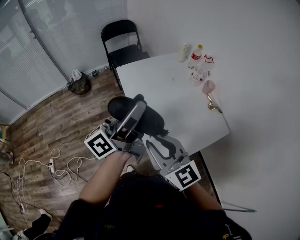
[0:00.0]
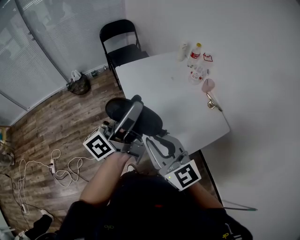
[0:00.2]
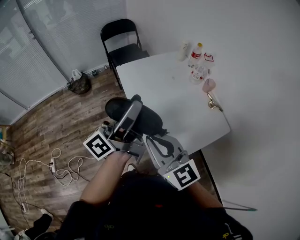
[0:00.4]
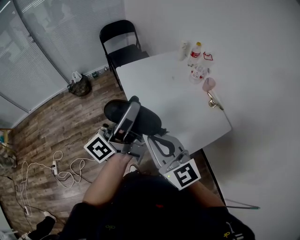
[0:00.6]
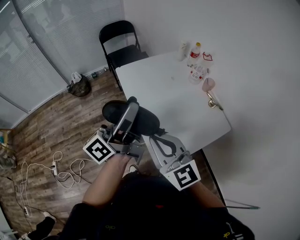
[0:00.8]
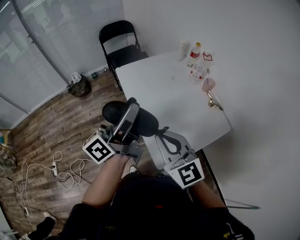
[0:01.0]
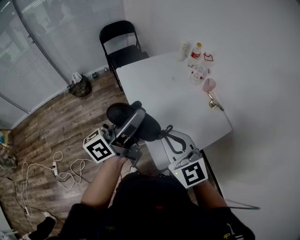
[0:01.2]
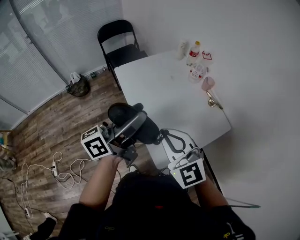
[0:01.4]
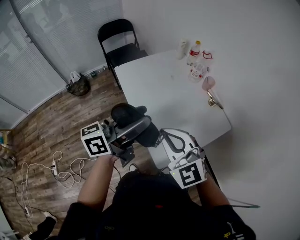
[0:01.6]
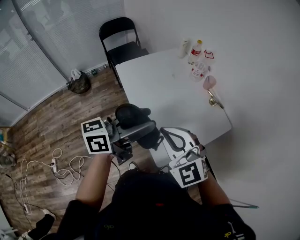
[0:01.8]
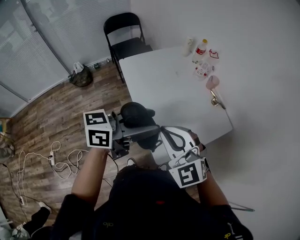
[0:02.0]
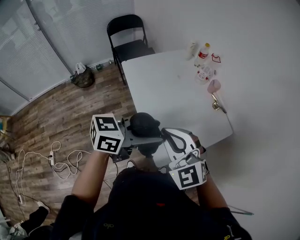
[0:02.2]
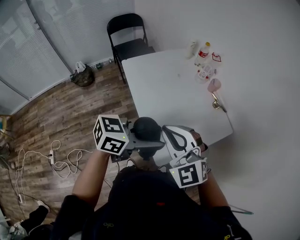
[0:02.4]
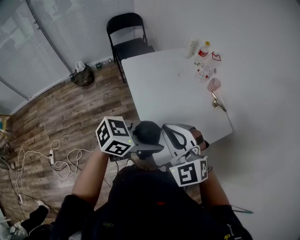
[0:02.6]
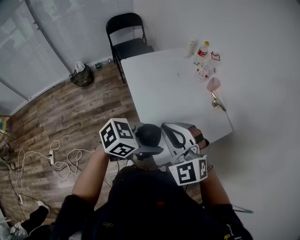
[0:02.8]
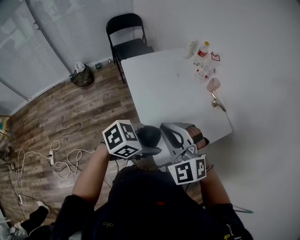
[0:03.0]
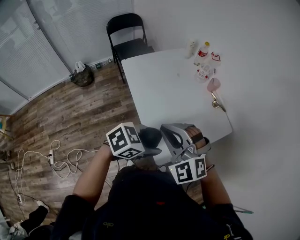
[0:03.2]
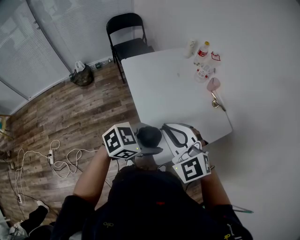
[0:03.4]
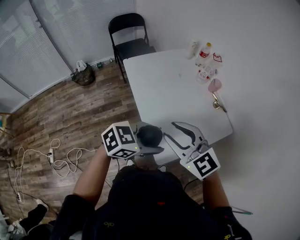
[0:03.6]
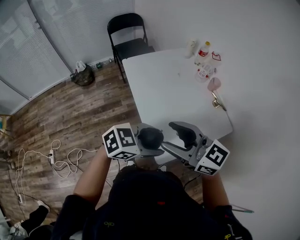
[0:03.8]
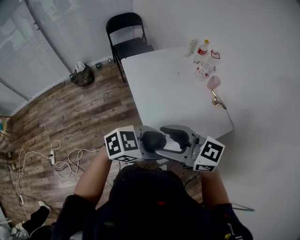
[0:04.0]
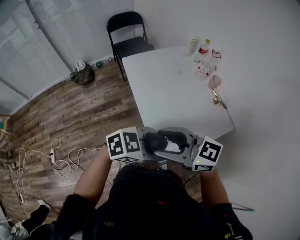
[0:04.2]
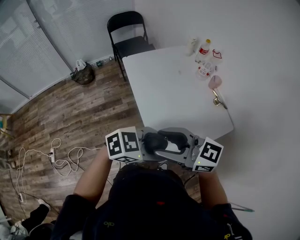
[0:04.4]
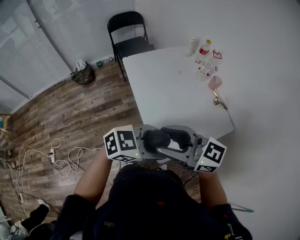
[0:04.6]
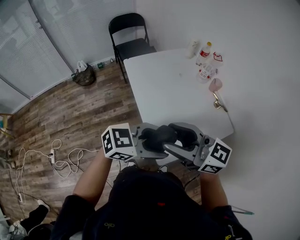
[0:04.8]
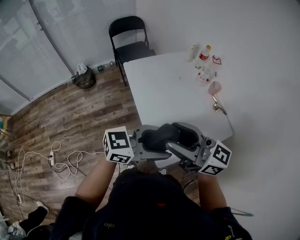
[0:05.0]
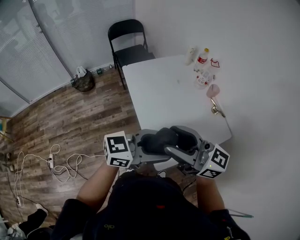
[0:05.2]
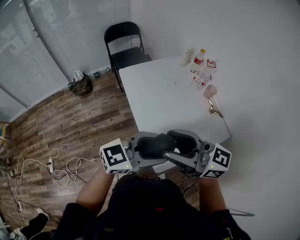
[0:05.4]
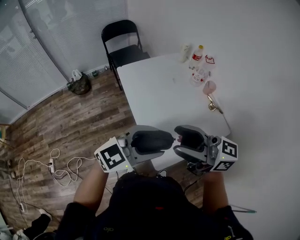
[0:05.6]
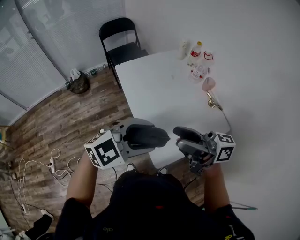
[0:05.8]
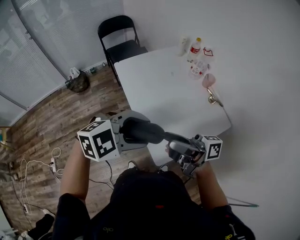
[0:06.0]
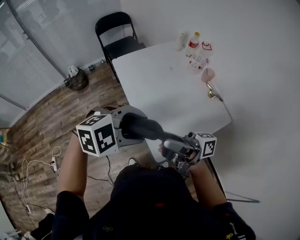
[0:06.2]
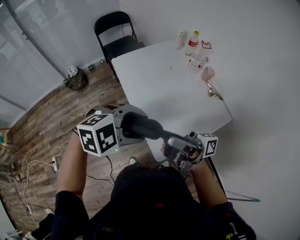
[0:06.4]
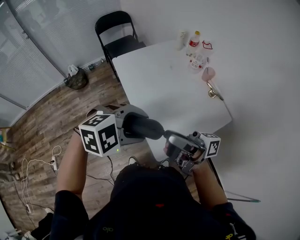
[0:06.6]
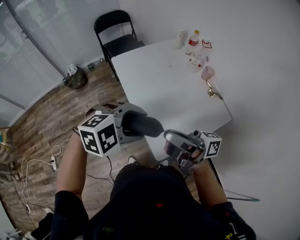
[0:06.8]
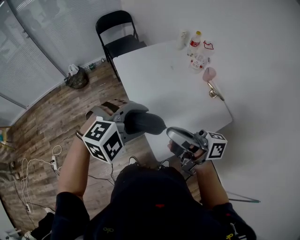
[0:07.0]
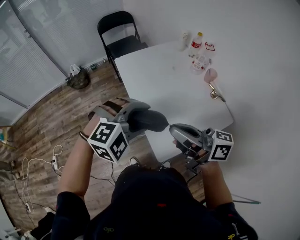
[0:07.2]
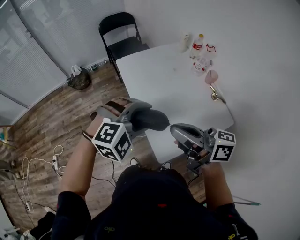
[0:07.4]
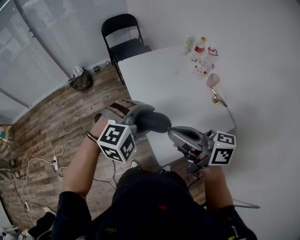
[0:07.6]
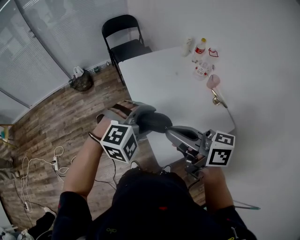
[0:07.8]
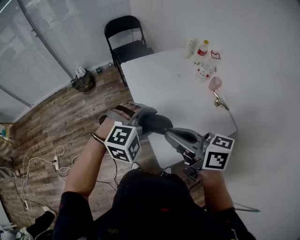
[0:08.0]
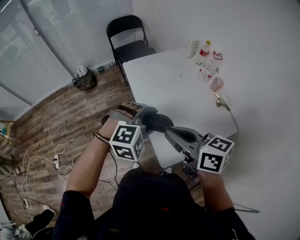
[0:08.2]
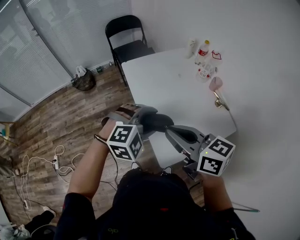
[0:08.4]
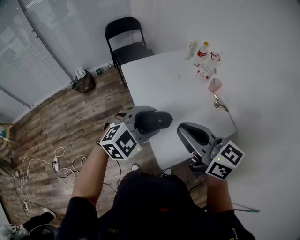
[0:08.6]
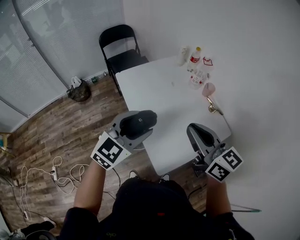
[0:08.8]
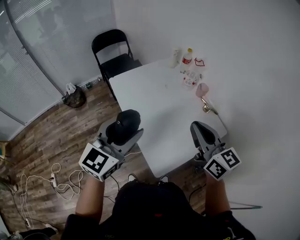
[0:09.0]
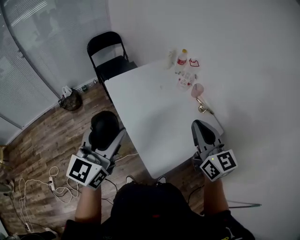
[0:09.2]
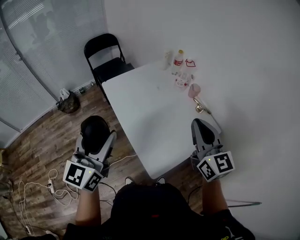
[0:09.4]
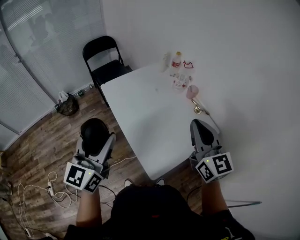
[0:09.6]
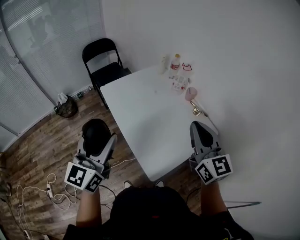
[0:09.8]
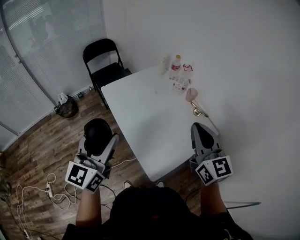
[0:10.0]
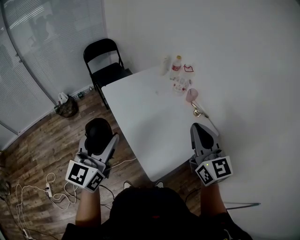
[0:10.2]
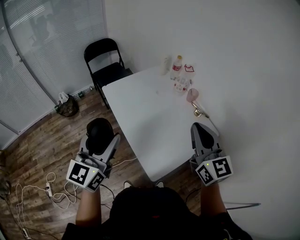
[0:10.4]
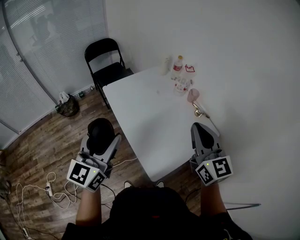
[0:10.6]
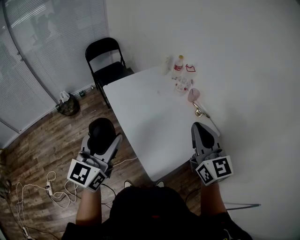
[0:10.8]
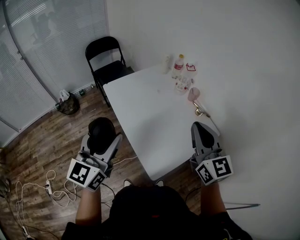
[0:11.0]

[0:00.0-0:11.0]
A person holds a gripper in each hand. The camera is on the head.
0:00.0 to 0:01.6: The right gripper turns by roughly 30 degrees; the left gripper changes place by roughly 5 cm, and swivels roughly 20 degrees.
0:01.6 to 0:03.2: The left gripper heads downward, to the right and backward, covering about 20 cm, and tips its fingers downward by approximately 50 degrees. Meanwhile the right gripper changes its angle by about 30 degrees.
0:03.2 to 0:04.8: The grippers both shift upward by roughly 5 cm. The right gripper rolls clockwise, seen from behind, by about 60 degrees, and opens its fingers; the left gripper swivels roughly 20 degrees.
0:04.8 to 0:06.2: The left gripper moves approximately 5 cm, and swivels some 40 degrees. The right gripper rotates around the line of its fingers by some 50 degrees, clockwise from behind.
0:06.2 to 0:07.8: The right gripper rotates roughly 40 degrees, and closes, while the left gripper ends up approximately 5 cm from where it was, and turns by roughly 30 degrees.
0:07.8 to 0:09.4: The right gripper is displaced to the right by approximately 15 cm, and rotates approximately 60 degrees. The left gripper goes some 15 cm upward and to the left, and points its fingers roughly 50 degrees further upward.
0:09.4 to 0:11.0: The grippers move only a little.

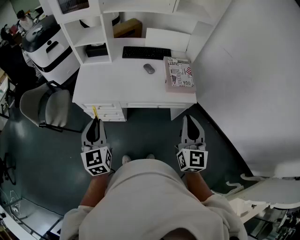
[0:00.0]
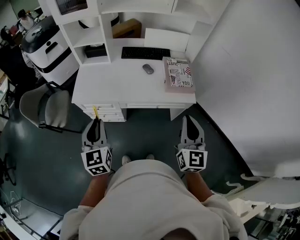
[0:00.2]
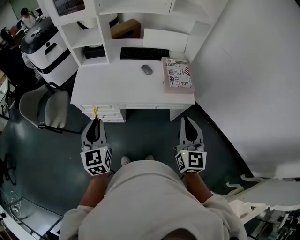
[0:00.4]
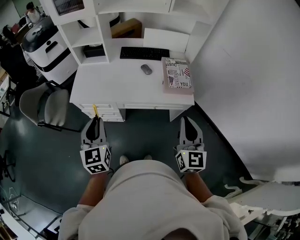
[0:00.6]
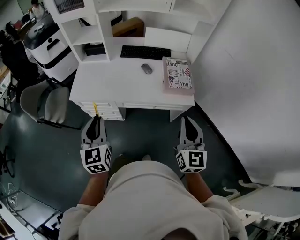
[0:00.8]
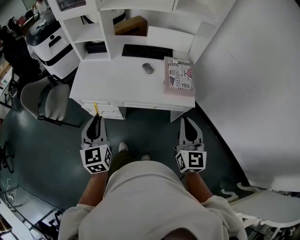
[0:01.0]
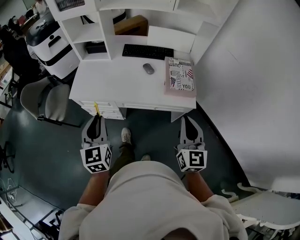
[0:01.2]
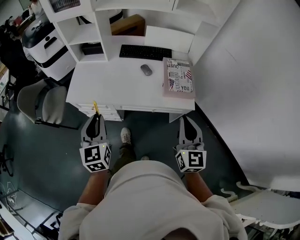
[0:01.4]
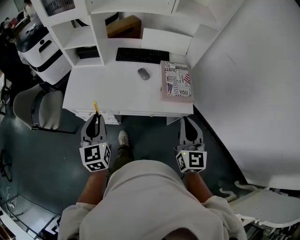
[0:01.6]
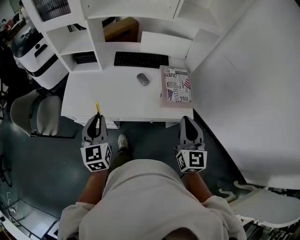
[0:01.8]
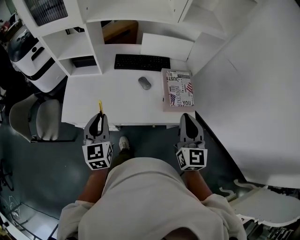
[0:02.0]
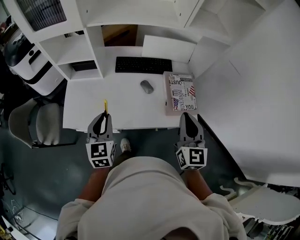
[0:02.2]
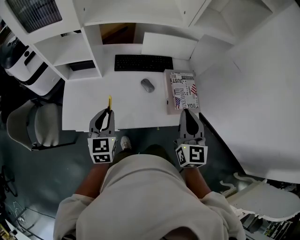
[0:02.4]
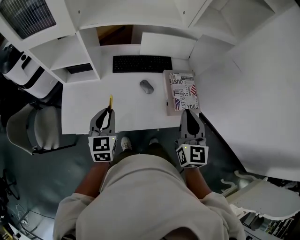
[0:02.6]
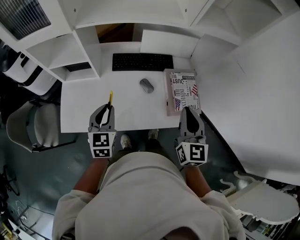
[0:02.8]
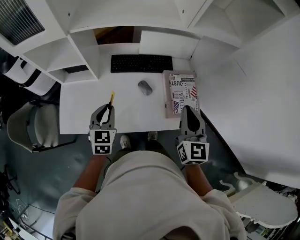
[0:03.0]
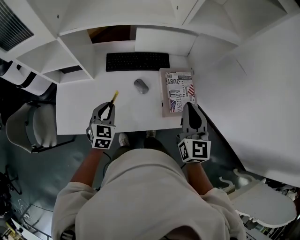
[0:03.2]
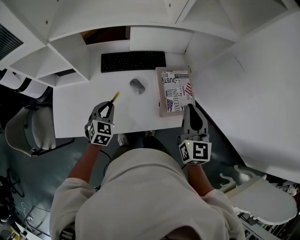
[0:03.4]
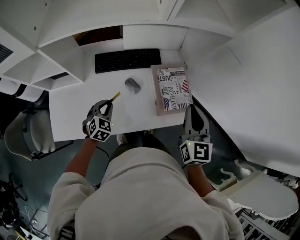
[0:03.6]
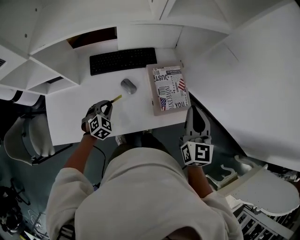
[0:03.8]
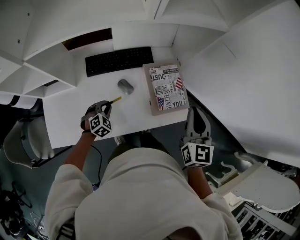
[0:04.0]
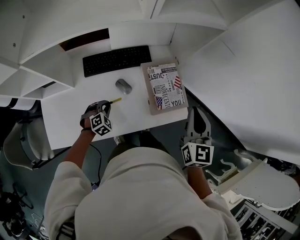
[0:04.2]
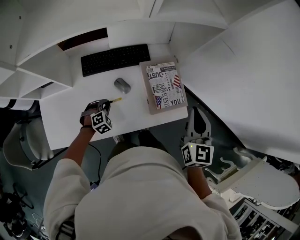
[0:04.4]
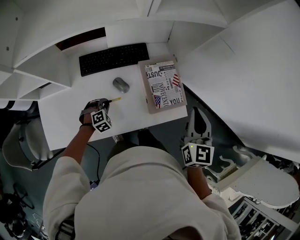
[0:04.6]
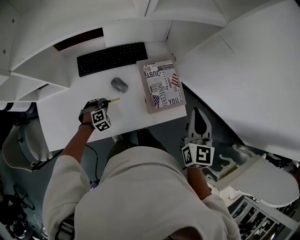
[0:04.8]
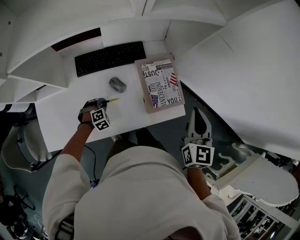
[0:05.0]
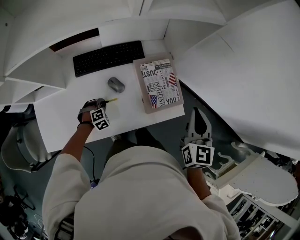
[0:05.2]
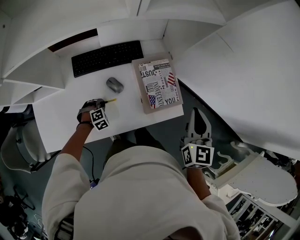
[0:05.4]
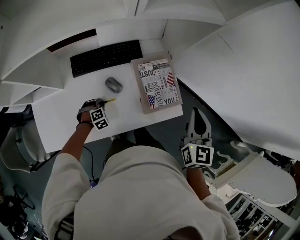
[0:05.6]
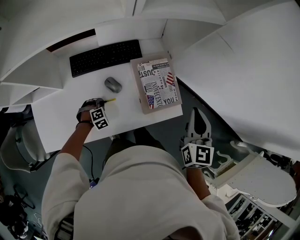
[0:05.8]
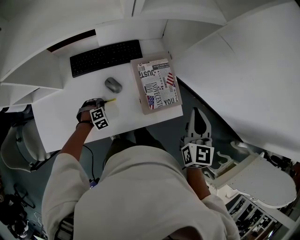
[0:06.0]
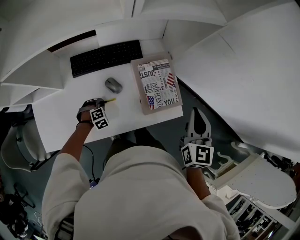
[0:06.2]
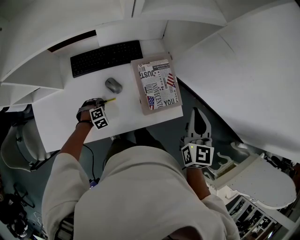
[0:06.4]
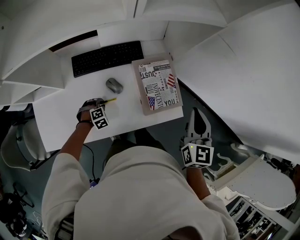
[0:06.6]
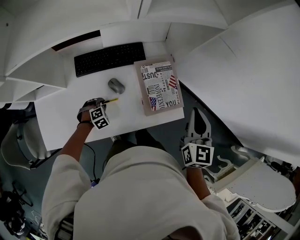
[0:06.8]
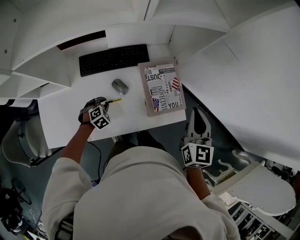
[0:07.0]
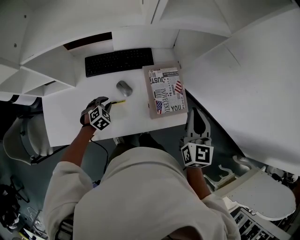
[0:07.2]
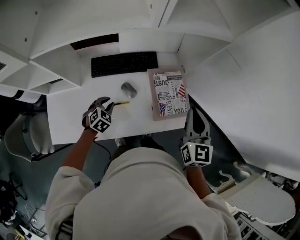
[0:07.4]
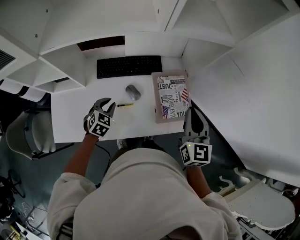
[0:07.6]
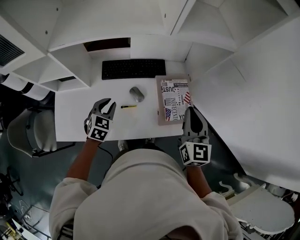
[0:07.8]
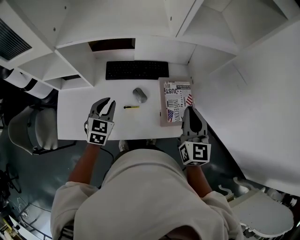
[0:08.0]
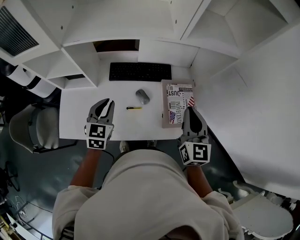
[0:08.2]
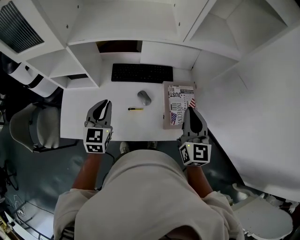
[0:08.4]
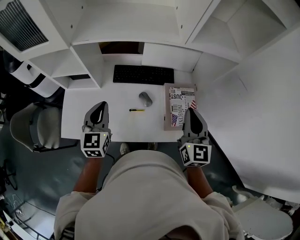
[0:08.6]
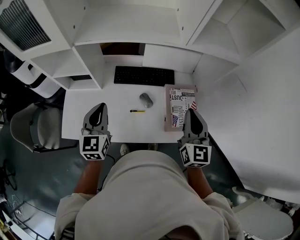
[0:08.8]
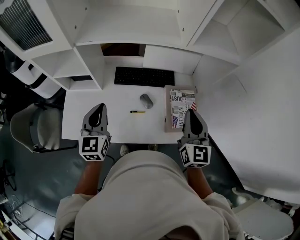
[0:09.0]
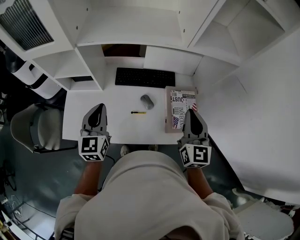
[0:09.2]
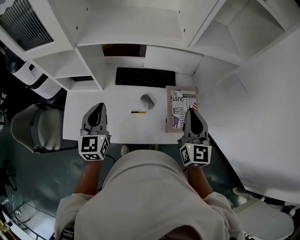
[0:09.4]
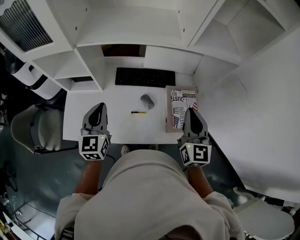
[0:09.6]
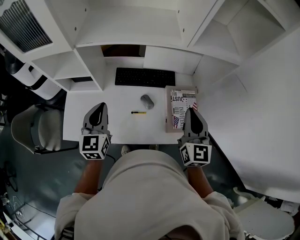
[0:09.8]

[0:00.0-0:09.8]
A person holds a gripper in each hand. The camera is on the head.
0:00.0 to 0:01.4: The right gripper shifts approximately 10 cm forward and to the right; the left gripper shifts approximately 10 cm to the right and forward.
0:01.4 to 0:02.8: The grippers both shift forward by some 25 cm. The left gripper turns by approximately 20 degrees.
0:02.8 to 0:04.2: The left gripper moves downward, forward and to the right, approximately 25 cm, and twists approximately 50 degrees clockwise, seen from behind. The right gripper heads to the right and forward, covering approximately 15 cm.
0:04.2 to 0:05.6: The left gripper moves downward, about 10 cm.
0:05.6 to 0:07.0: The left gripper travels upward by approximately 5 cm.
0:07.0 to 0:08.4: The right gripper travels to the left and upward by about 15 cm. Meanwhile the left gripper moves upward, roughly 30 cm, and angles its fingers upward, by roughly 50 degrees.
0:08.4 to 0:09.8: The left gripper shifts by about 5 cm.

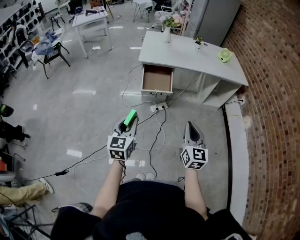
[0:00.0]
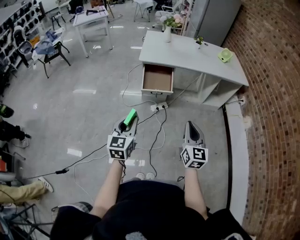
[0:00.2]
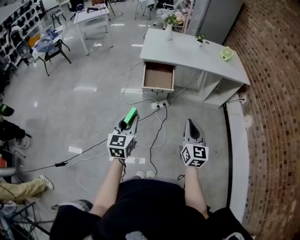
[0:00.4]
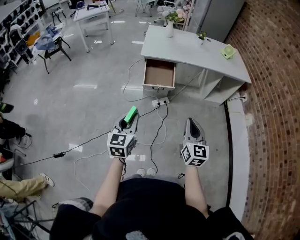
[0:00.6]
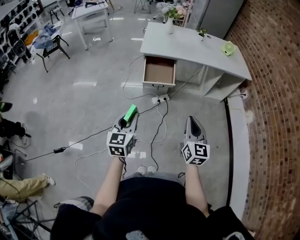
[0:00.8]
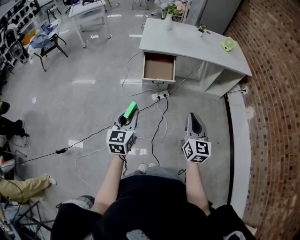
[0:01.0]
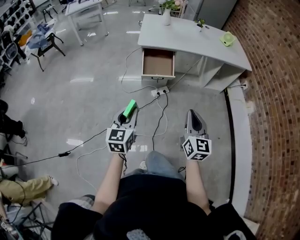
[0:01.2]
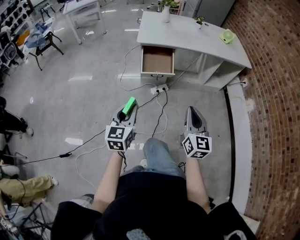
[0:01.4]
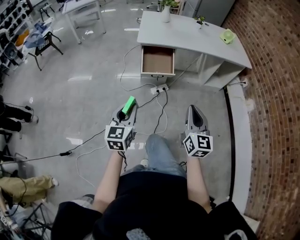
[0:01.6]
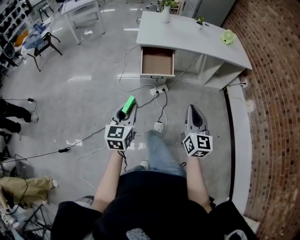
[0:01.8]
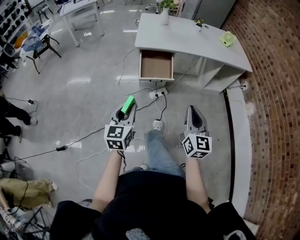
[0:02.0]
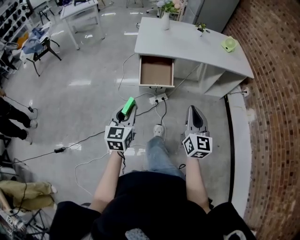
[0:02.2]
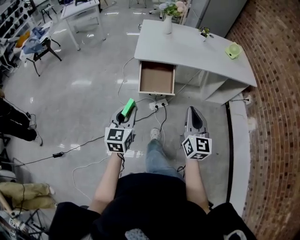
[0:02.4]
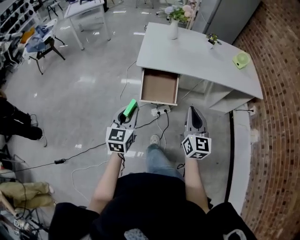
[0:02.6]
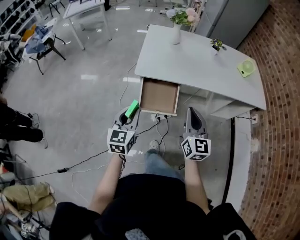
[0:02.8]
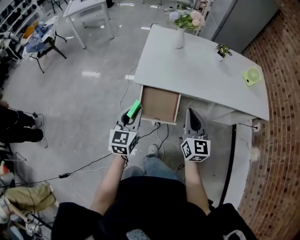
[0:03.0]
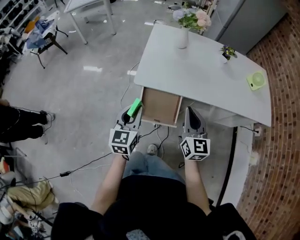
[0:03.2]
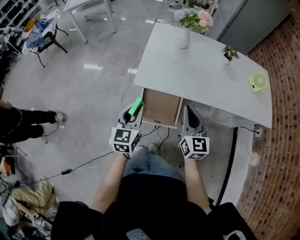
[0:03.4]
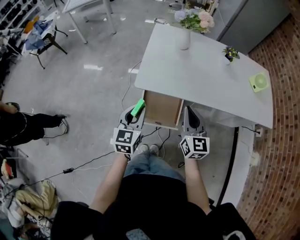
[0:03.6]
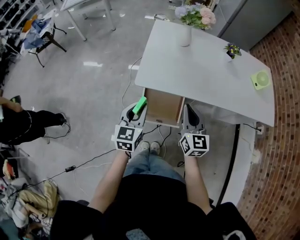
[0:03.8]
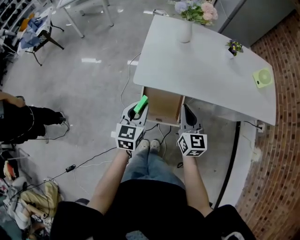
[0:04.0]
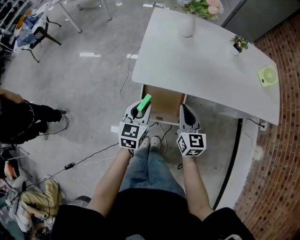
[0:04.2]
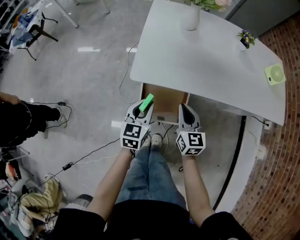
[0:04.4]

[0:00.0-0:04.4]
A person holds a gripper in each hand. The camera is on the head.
0:00.0 to 0:01.4: There are only small adjustments of the grippers.
0:01.4 to 0:03.0: The pair of grippers is taken forward, about 50 cm.
0:03.0 to 0:04.4: Both grippers move downward and forward, approximately 20 cm.
